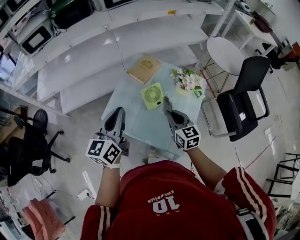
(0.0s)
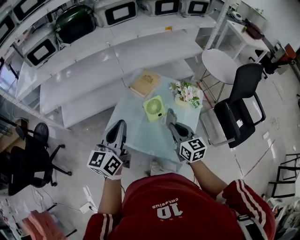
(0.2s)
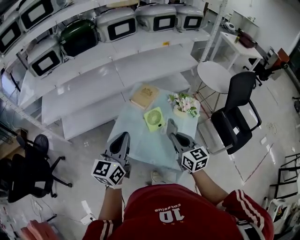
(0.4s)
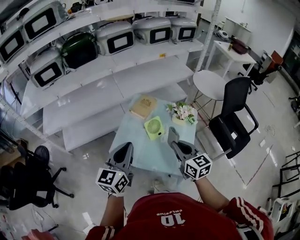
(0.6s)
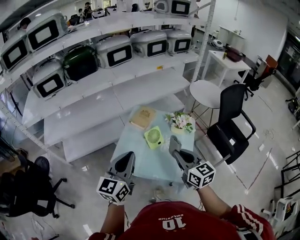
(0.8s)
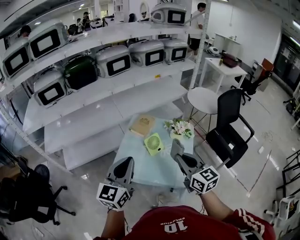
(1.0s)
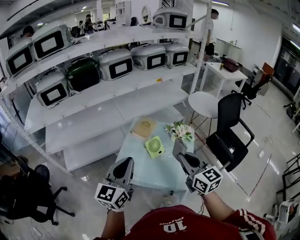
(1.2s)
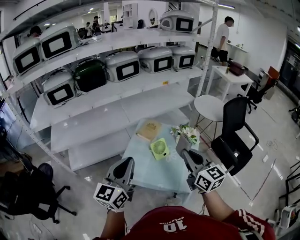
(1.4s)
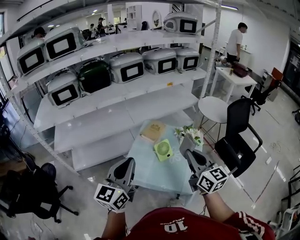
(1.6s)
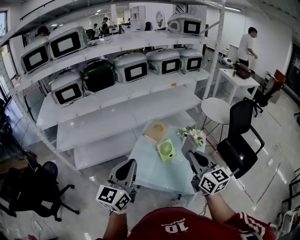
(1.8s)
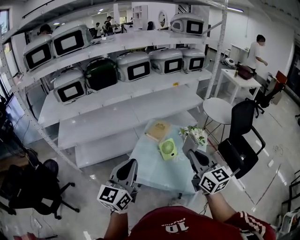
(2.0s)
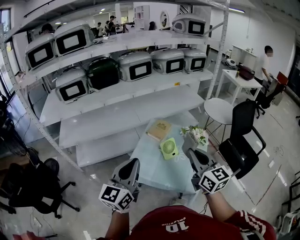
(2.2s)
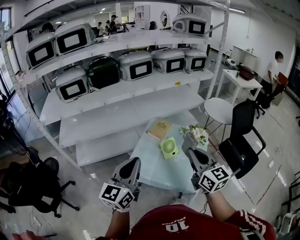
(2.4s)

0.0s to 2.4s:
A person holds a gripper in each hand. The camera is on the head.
0.0s to 1.2s: The left gripper shifts some 20 cm upward and backward, and changes its angle by about 20 degrees; the right gripper moves upward and backward, about 30 cm.
1.2s to 2.4s: The left gripper ends up roughly 5 cm from where it was.

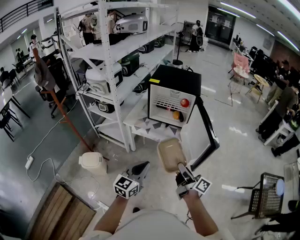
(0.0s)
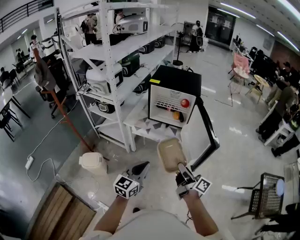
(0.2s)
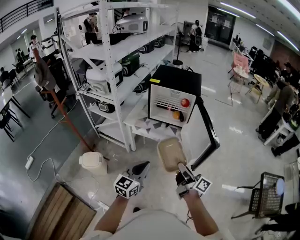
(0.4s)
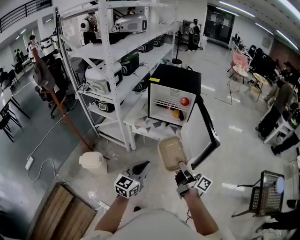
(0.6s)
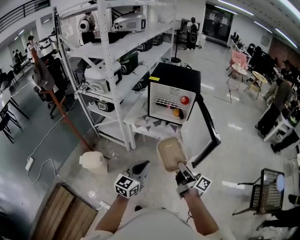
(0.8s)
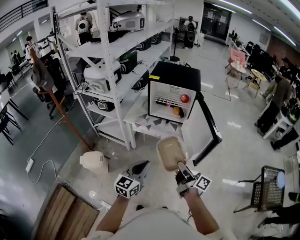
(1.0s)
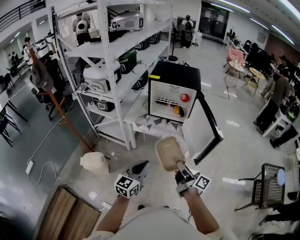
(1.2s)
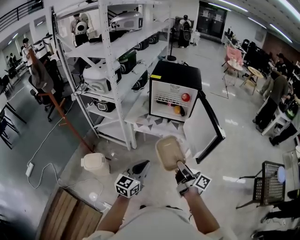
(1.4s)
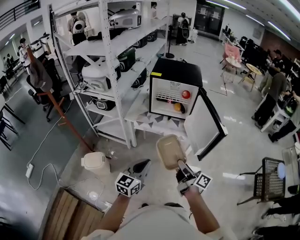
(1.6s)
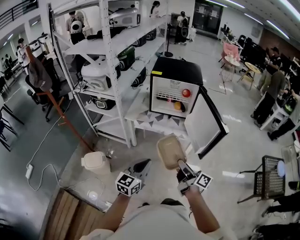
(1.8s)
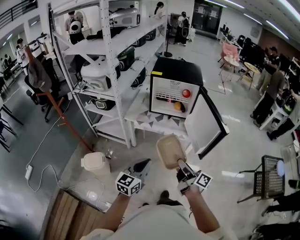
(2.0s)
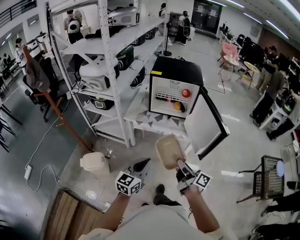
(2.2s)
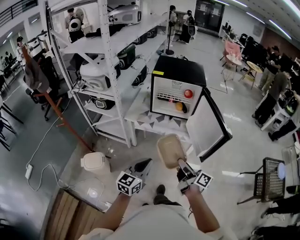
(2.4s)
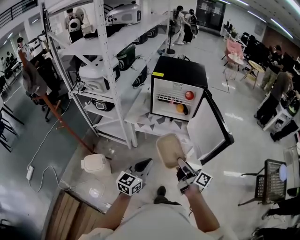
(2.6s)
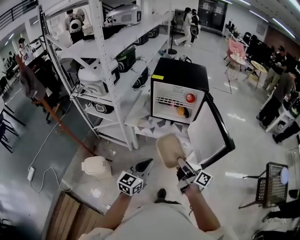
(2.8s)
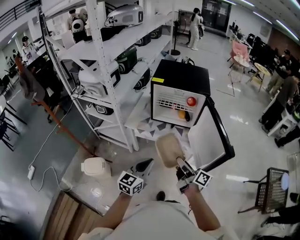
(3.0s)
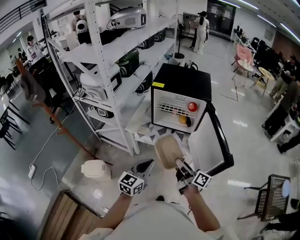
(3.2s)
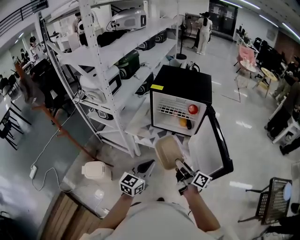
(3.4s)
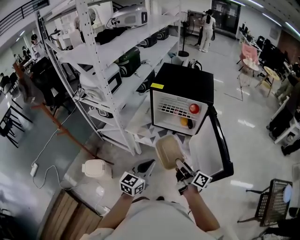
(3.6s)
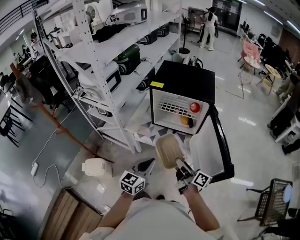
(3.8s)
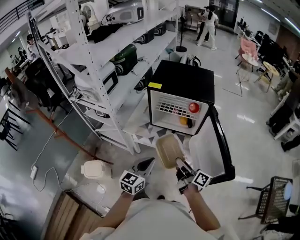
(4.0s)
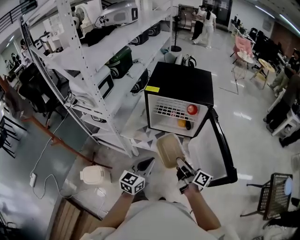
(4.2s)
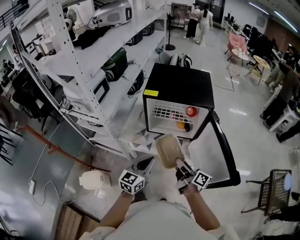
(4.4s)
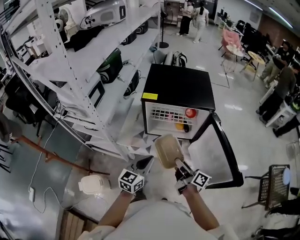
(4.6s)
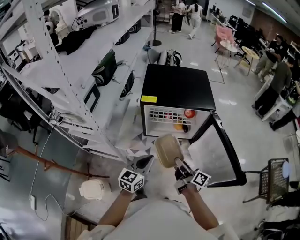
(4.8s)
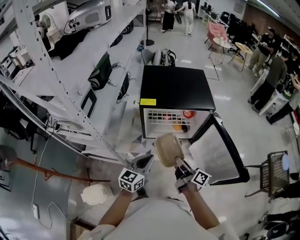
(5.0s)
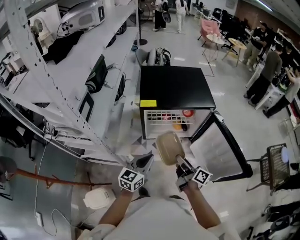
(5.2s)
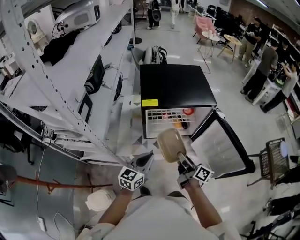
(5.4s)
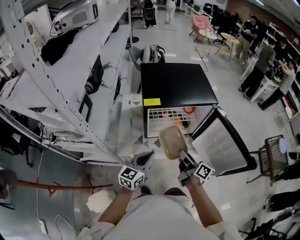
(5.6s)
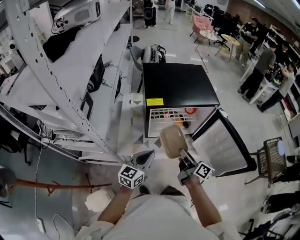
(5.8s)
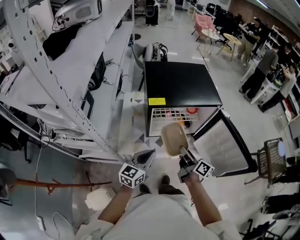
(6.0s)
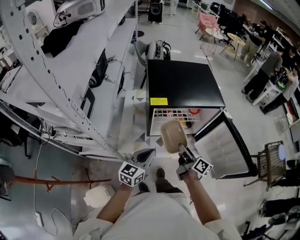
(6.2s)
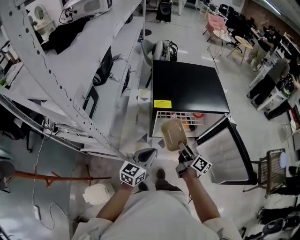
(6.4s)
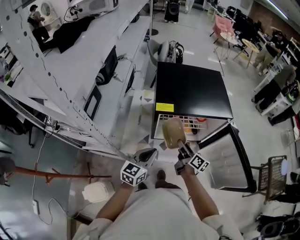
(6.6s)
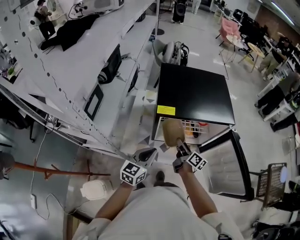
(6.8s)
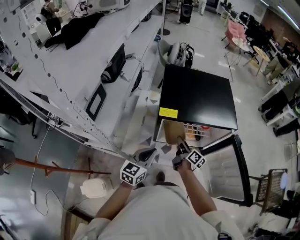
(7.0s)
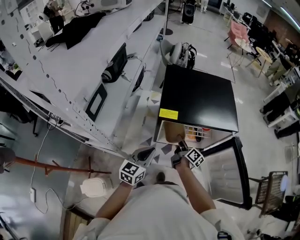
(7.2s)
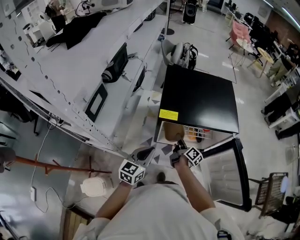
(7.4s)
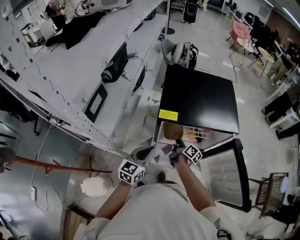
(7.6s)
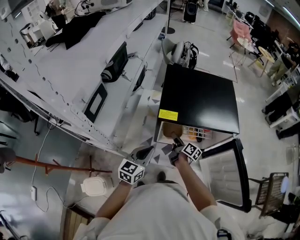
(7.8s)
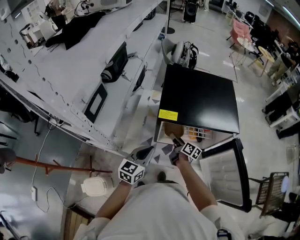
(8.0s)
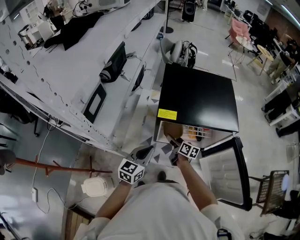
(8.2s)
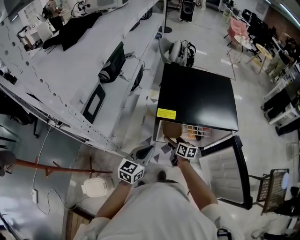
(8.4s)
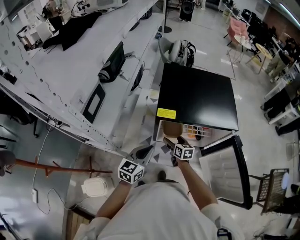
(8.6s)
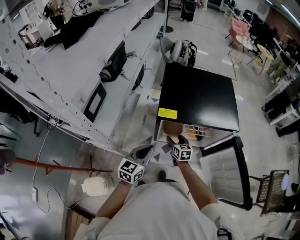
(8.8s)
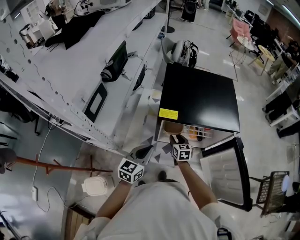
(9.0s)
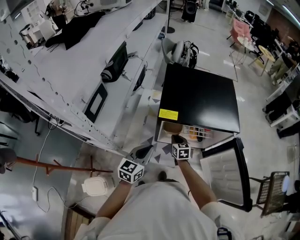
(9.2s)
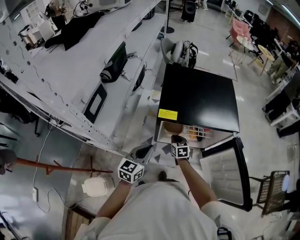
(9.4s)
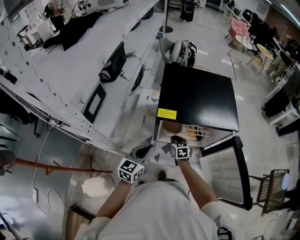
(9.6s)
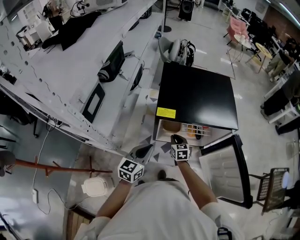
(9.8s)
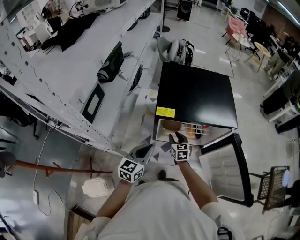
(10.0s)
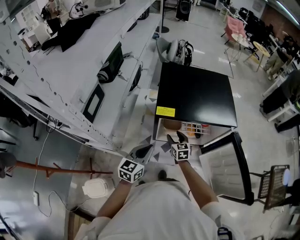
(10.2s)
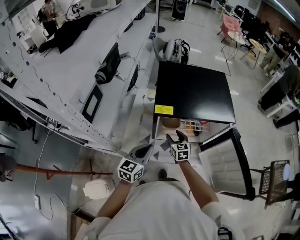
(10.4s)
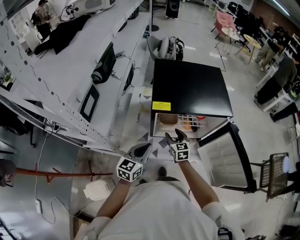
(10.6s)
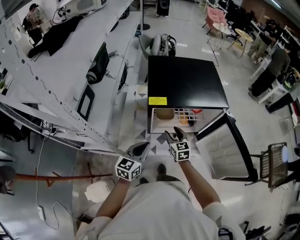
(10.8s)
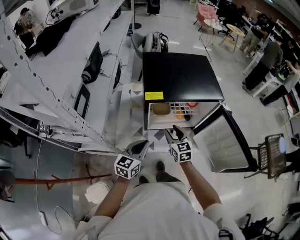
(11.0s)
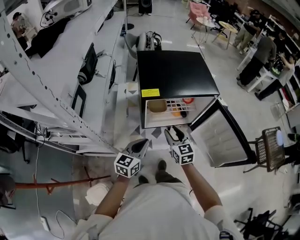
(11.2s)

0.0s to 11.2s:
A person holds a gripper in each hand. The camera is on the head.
0.0s to 1.6s: Both grippers move to the left, about 5 cm.
1.6s to 3.2s: The grippers both shift forward by some 15 cm.
3.2s to 4.8s: The two grippers go roughly 20 cm forward.
4.8s to 6.4s: The left gripper is displaced to the left and forward by approximately 10 cm. The right gripper shifts some 15 cm forward and to the left.
6.4s to 8.0s: The right gripper heads forward and downward, covering approximately 20 cm; the left gripper is displaced forward by about 5 cm.
8.0s to 9.6s: The right gripper rolls counterclockwise, seen from behind, by approximately 50 degrees, and closes its fingers.
9.6s to 11.2s: The right gripper shifts some 20 cm upward and backward, and turns by roughly 20 degrees, while the left gripper heads backward, covering about 5 cm.

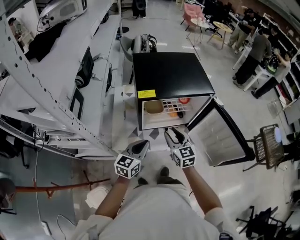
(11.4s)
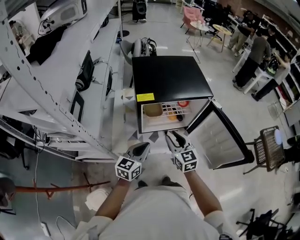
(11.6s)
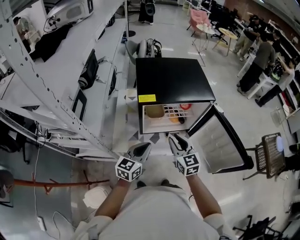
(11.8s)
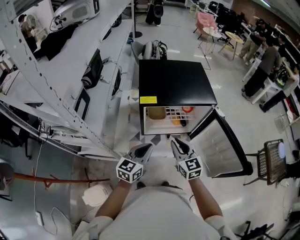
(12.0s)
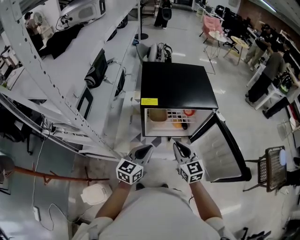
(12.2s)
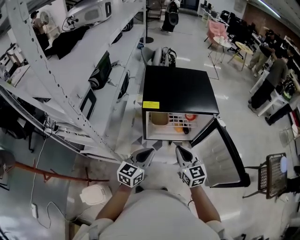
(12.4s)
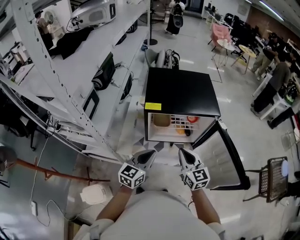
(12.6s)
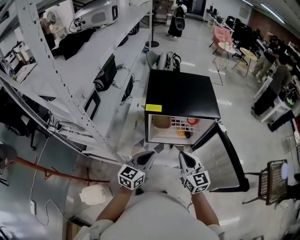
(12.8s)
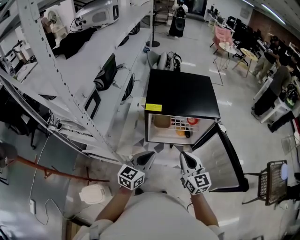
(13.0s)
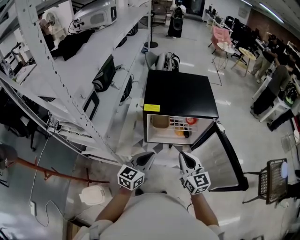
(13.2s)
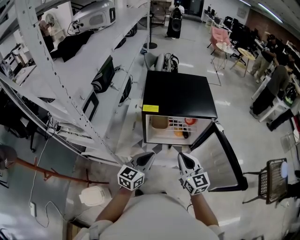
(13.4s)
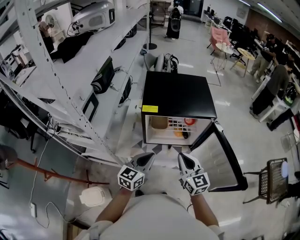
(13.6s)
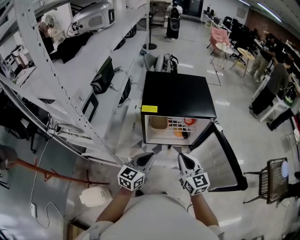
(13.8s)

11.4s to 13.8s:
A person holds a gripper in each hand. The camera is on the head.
11.4s to 12.6s: The left gripper moves upward, approximately 5 cm. Meanwhile the right gripper travels upward and to the right by some 10 cm, and closes up.
12.6s to 13.8s: The grippers move only a little.

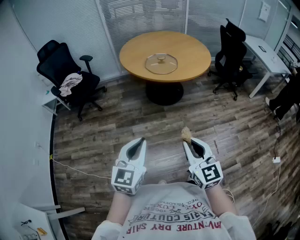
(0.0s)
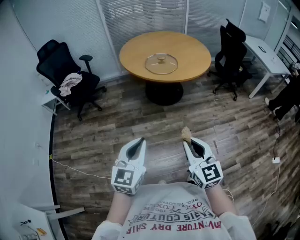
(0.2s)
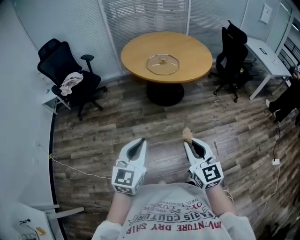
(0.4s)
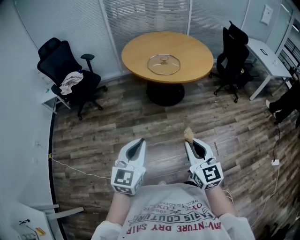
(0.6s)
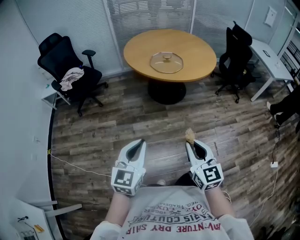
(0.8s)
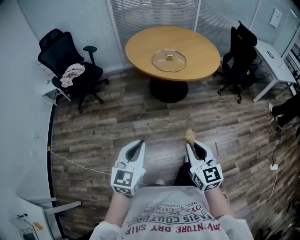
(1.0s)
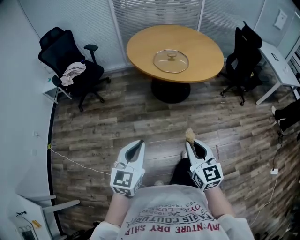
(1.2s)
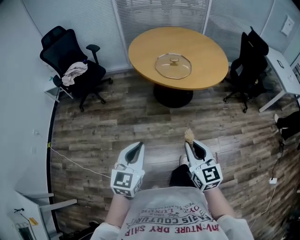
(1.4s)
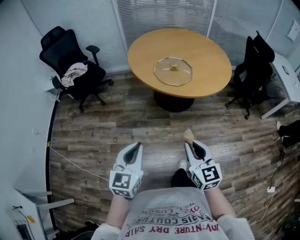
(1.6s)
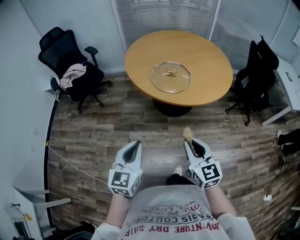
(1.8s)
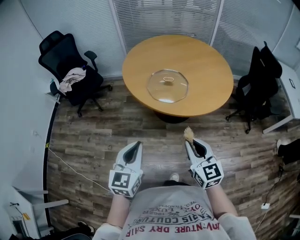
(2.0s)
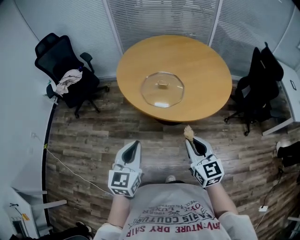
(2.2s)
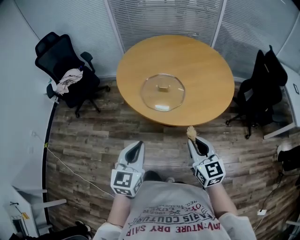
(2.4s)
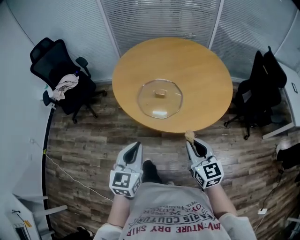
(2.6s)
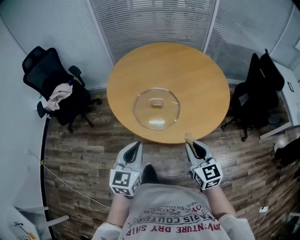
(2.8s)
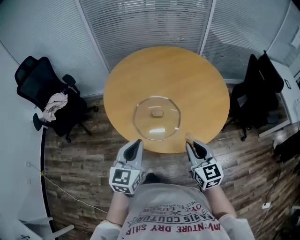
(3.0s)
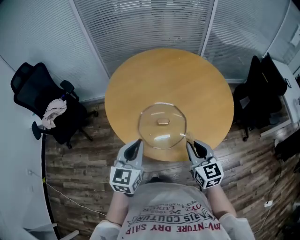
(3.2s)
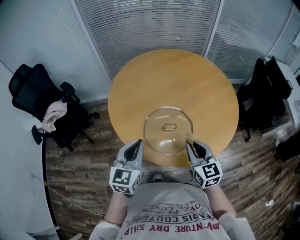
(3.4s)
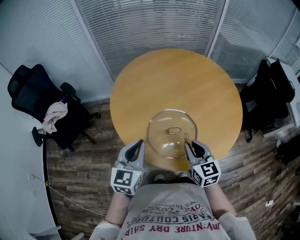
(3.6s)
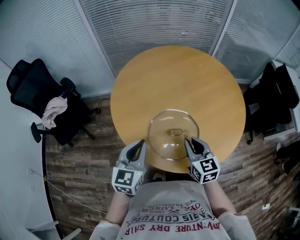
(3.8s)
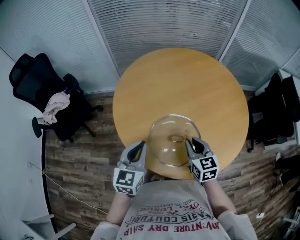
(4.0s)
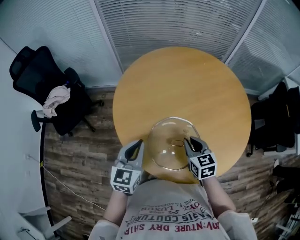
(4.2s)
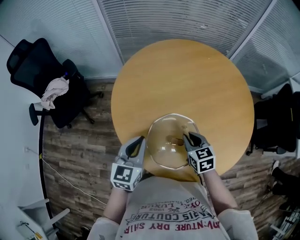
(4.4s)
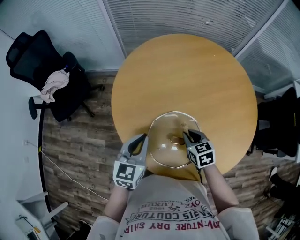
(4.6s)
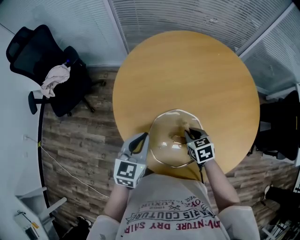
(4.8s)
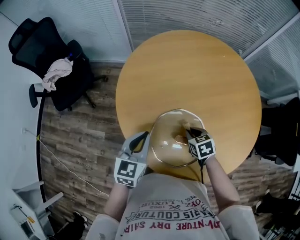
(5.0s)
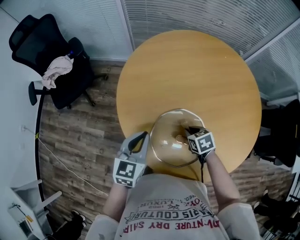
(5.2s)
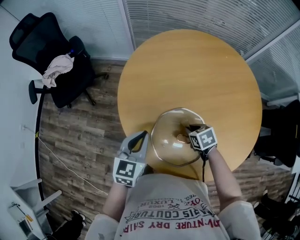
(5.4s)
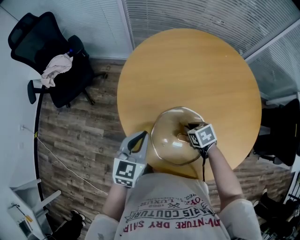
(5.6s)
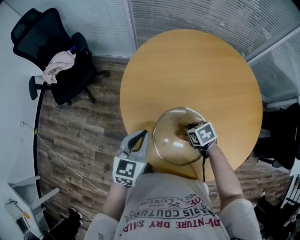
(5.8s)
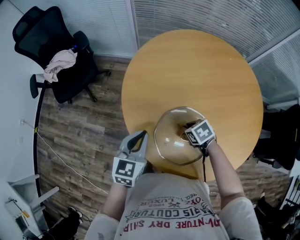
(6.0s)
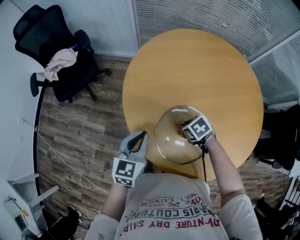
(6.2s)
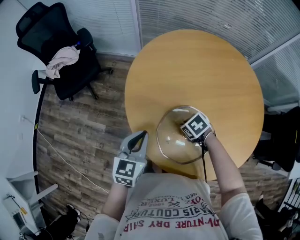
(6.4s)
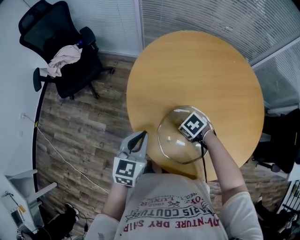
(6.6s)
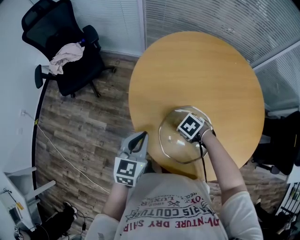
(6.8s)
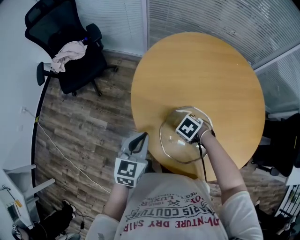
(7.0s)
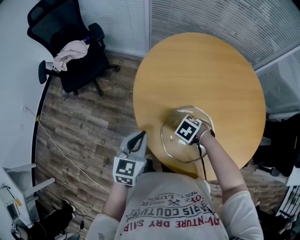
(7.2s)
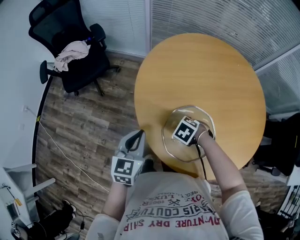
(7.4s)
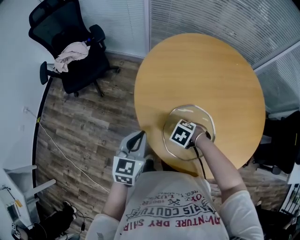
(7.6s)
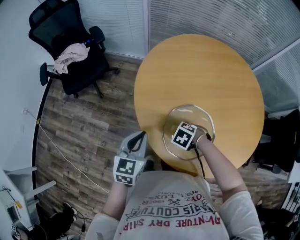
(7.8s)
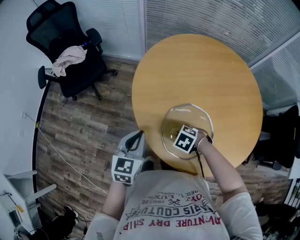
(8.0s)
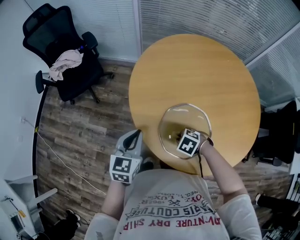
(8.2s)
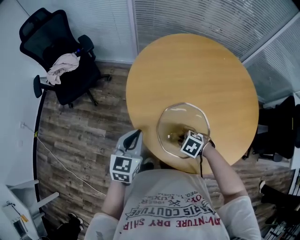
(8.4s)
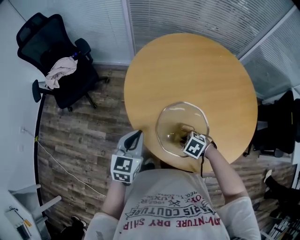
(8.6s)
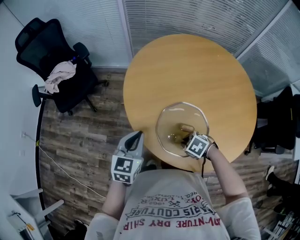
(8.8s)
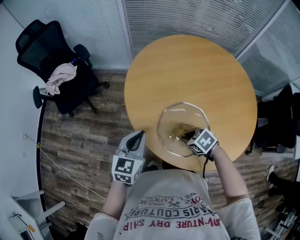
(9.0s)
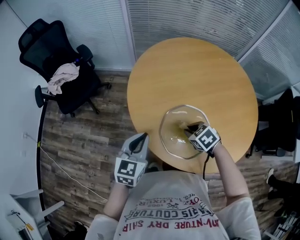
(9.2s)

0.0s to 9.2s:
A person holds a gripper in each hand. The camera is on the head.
0.0s to 1.6s: Both grippers travel together forward, some 20 cm.
1.6s to 3.0s: Both grippers are carried forward, approximately 40 cm.
3.0s to 4.6s: The left gripper heads forward, covering approximately 25 cm; the right gripper shifts some 35 cm forward and downward, and points its fingers some 30 degrees further downward.
4.6s to 6.2s: The left gripper ends up about 10 cm from where it was. Meanwhile the right gripper shifts by some 10 cm, and turns by about 40 degrees.
6.2s to 7.6s: The left gripper changes place by some 5 cm; the right gripper changes place by roughly 10 cm, and changes its angle by about 30 degrees.
7.6s to 9.2s: The right gripper shifts roughly 5 cm upward, and turns by approximately 30 degrees.
